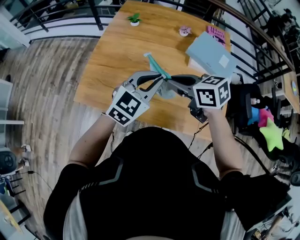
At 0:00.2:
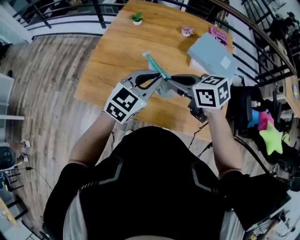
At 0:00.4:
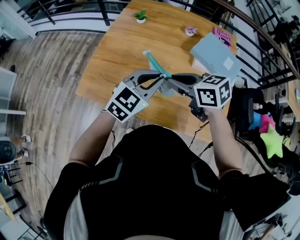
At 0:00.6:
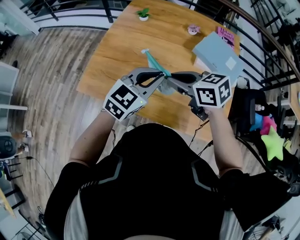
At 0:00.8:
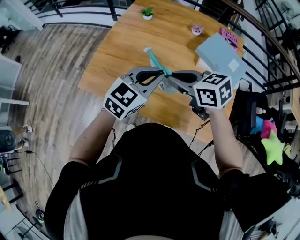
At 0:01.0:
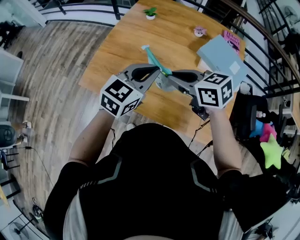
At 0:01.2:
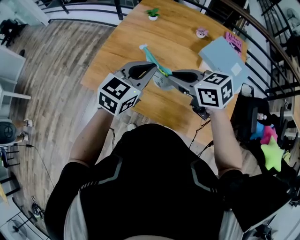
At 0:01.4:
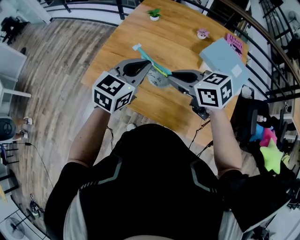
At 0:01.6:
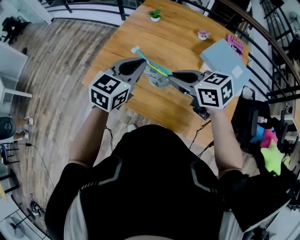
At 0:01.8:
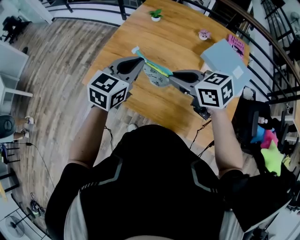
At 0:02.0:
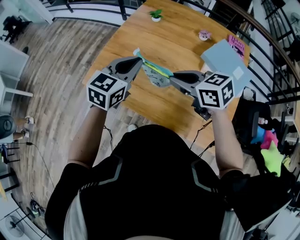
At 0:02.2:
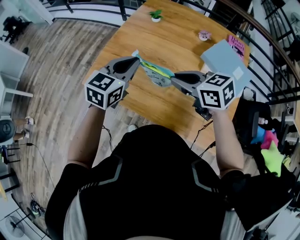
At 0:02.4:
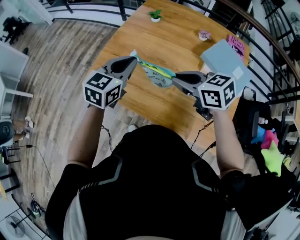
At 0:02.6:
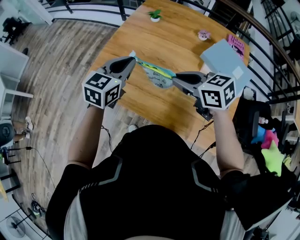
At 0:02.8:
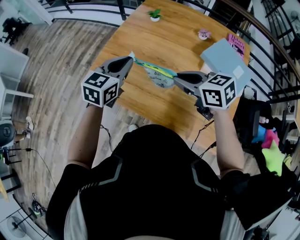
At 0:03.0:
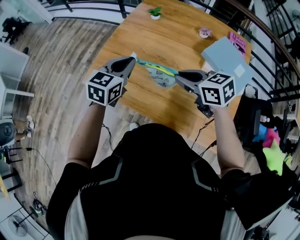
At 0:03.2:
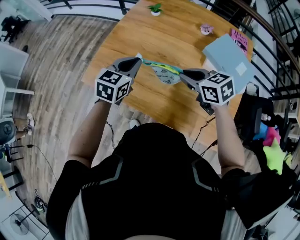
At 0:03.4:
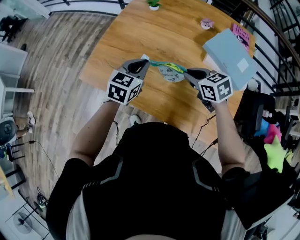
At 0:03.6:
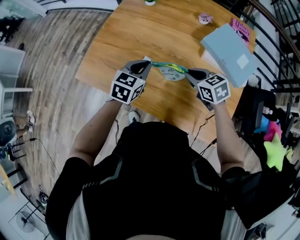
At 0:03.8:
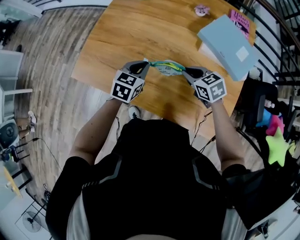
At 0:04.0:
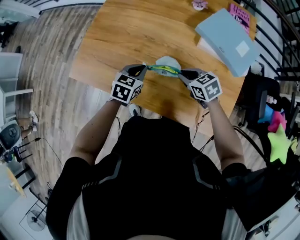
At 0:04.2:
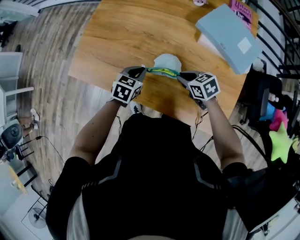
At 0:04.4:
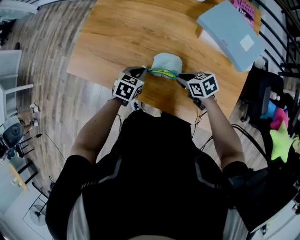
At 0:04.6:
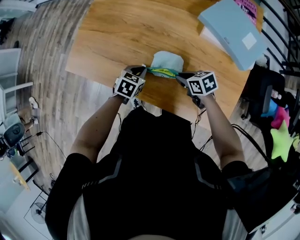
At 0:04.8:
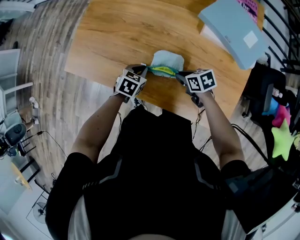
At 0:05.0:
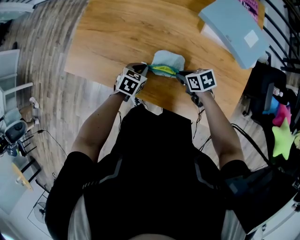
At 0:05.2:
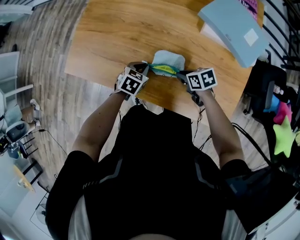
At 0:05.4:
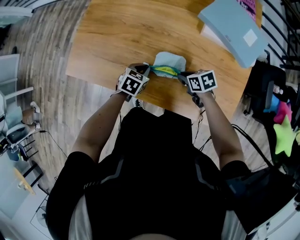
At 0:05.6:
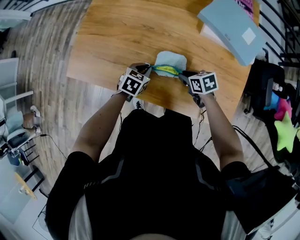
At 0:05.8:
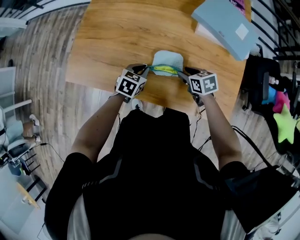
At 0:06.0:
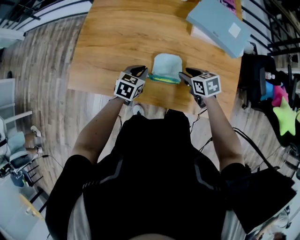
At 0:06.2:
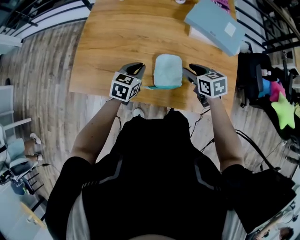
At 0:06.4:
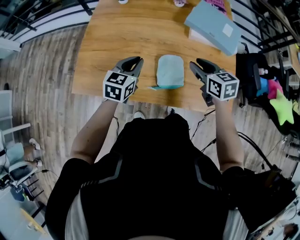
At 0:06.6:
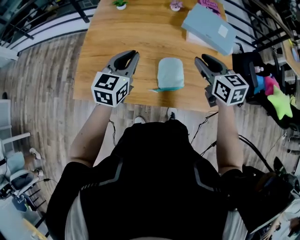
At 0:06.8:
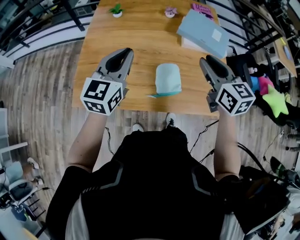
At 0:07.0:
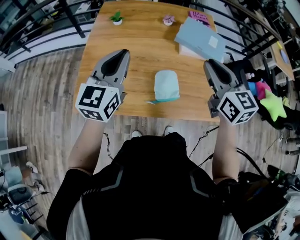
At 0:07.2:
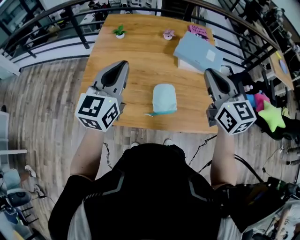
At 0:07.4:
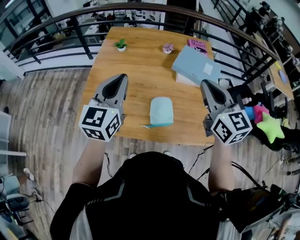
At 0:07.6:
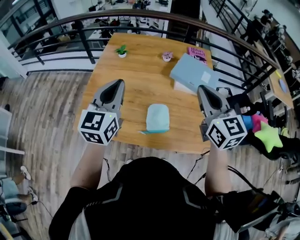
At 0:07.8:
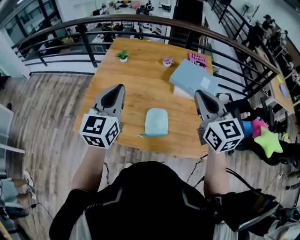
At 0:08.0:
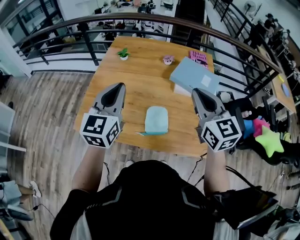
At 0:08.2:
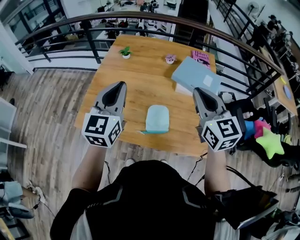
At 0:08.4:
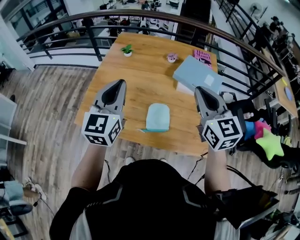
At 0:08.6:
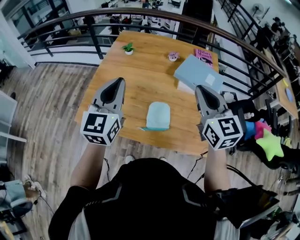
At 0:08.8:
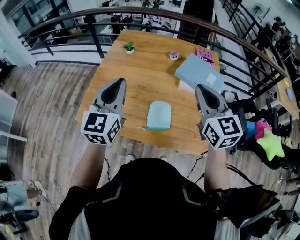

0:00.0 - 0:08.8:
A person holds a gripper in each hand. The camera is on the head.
0:00.0 - 0:01.4: The left gripper shifts about 5 cm to the left, and swivels about 20 degrees.
0:01.4 - 0:03.0: The left gripper is displaced to the left by roughly 5 cm.
0:03.0 - 0:04.4: The grippers both shift downward by some 25 cm. The left gripper rotates some 30 degrees; the right gripper swivels some 20 degrees.
0:04.4 - 0:05.8: The right gripper opens.
0:05.8 - 0:07.4: The two grippers go roughly 40 cm upward. The right gripper angles its fingers upward, by approximately 40 degrees, and closes up; the left gripper points its fingers some 50 degrees further upward.
0:07.4 - 0:08.8: The grippers make only small movements.

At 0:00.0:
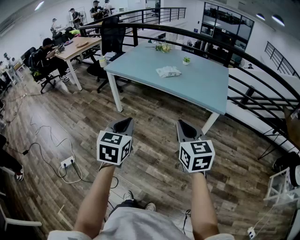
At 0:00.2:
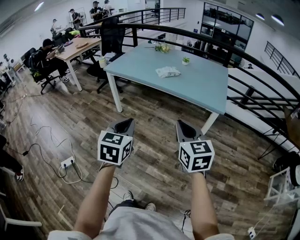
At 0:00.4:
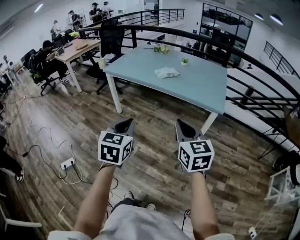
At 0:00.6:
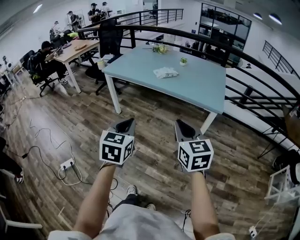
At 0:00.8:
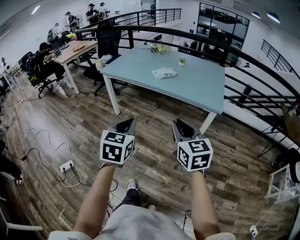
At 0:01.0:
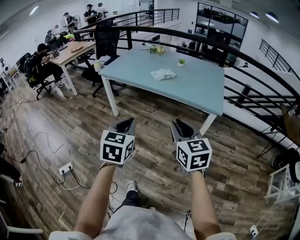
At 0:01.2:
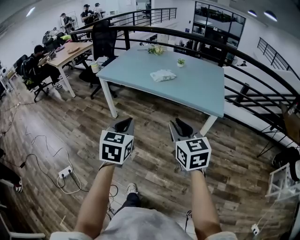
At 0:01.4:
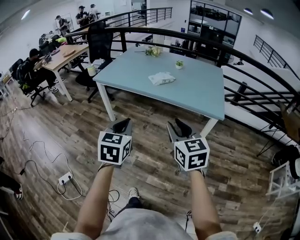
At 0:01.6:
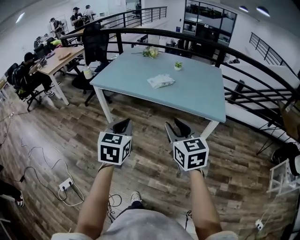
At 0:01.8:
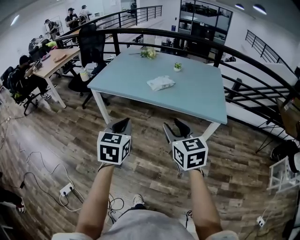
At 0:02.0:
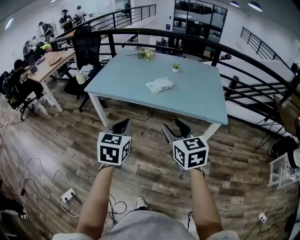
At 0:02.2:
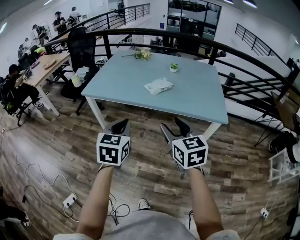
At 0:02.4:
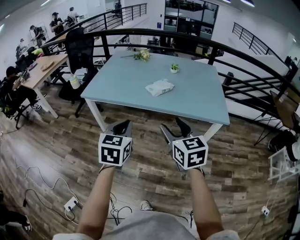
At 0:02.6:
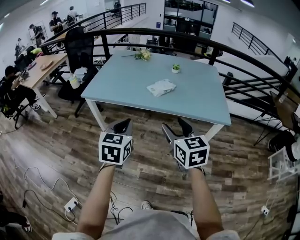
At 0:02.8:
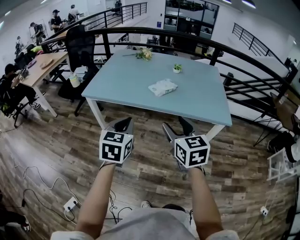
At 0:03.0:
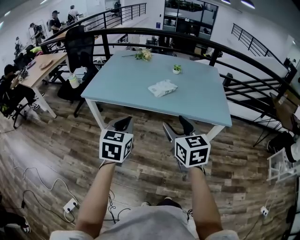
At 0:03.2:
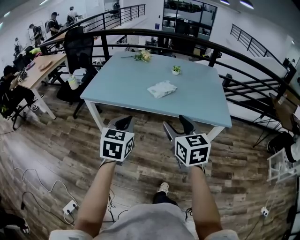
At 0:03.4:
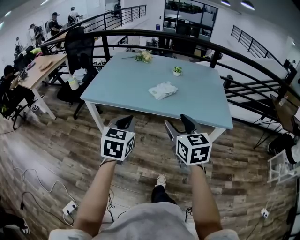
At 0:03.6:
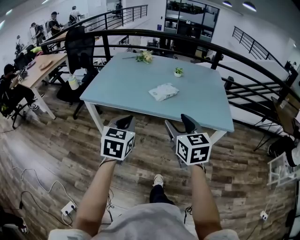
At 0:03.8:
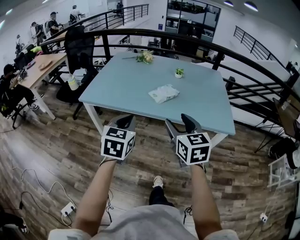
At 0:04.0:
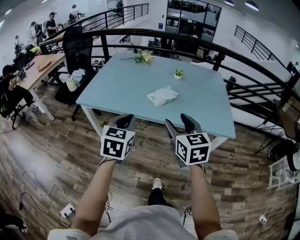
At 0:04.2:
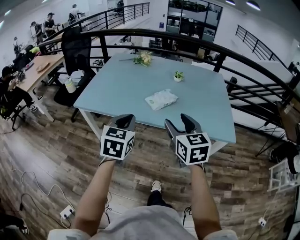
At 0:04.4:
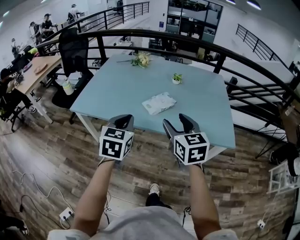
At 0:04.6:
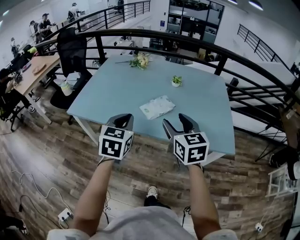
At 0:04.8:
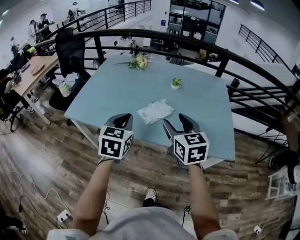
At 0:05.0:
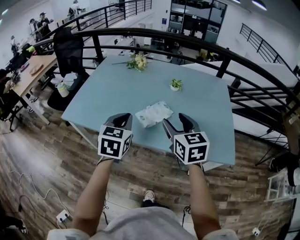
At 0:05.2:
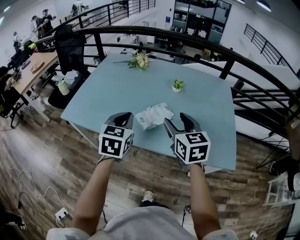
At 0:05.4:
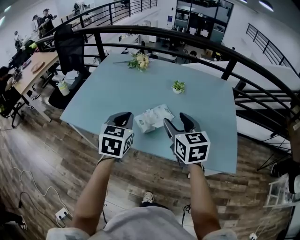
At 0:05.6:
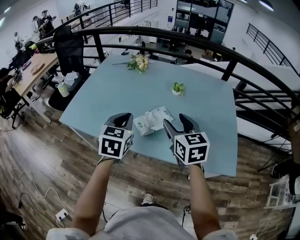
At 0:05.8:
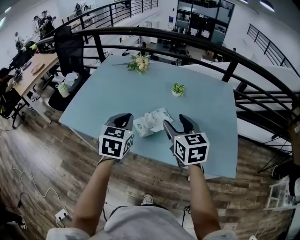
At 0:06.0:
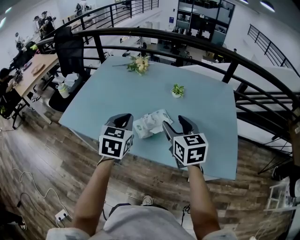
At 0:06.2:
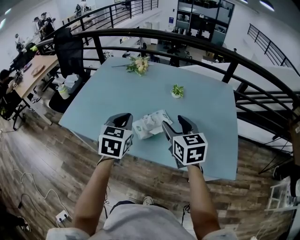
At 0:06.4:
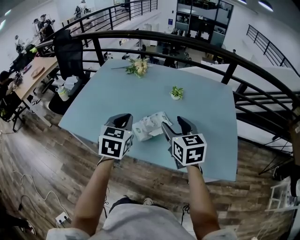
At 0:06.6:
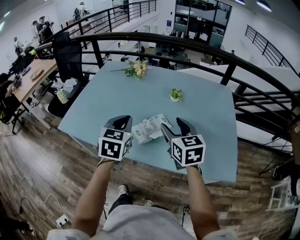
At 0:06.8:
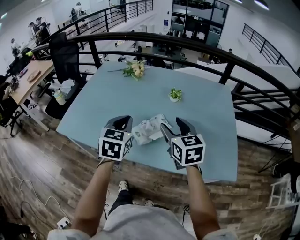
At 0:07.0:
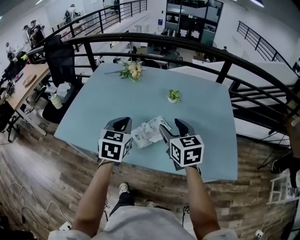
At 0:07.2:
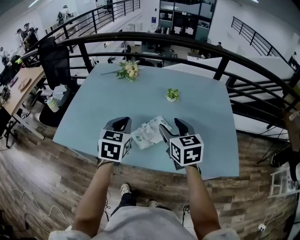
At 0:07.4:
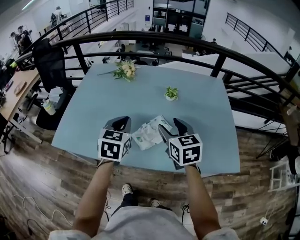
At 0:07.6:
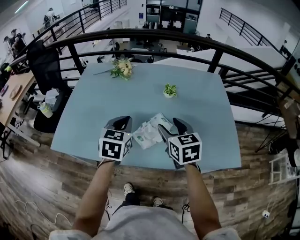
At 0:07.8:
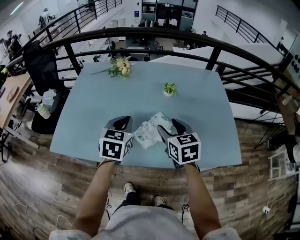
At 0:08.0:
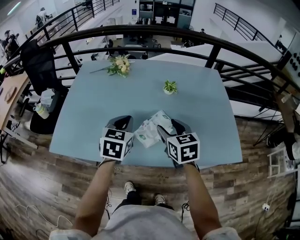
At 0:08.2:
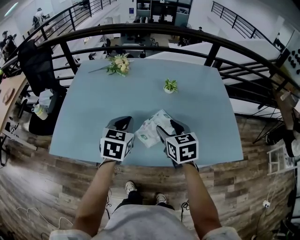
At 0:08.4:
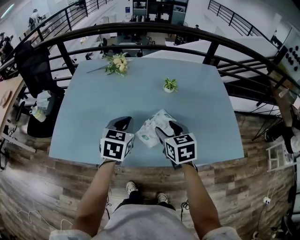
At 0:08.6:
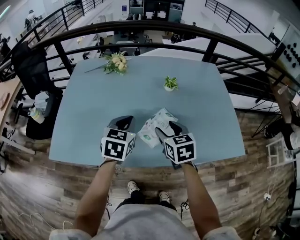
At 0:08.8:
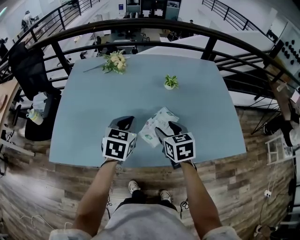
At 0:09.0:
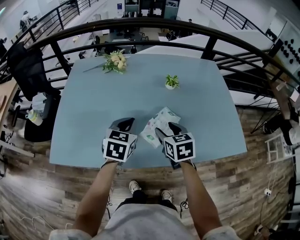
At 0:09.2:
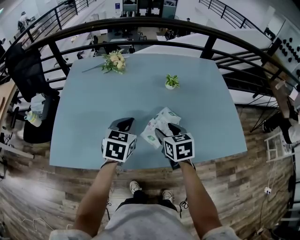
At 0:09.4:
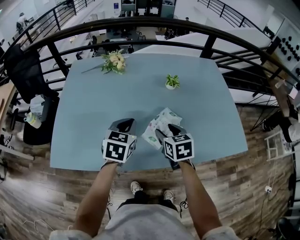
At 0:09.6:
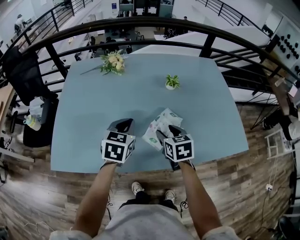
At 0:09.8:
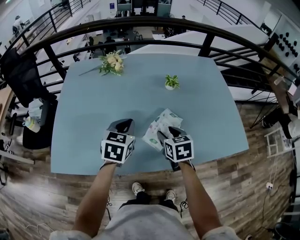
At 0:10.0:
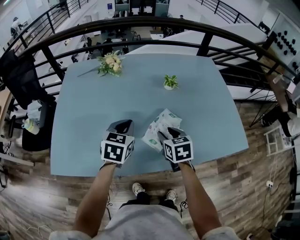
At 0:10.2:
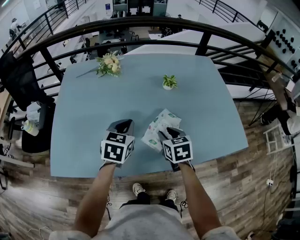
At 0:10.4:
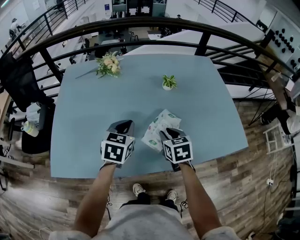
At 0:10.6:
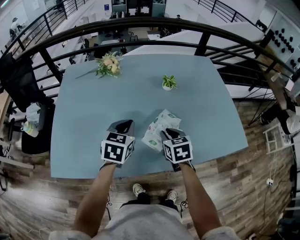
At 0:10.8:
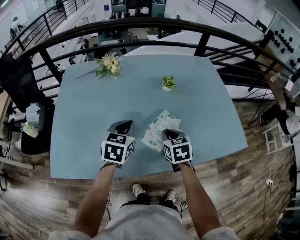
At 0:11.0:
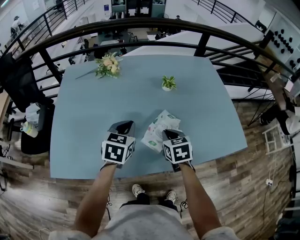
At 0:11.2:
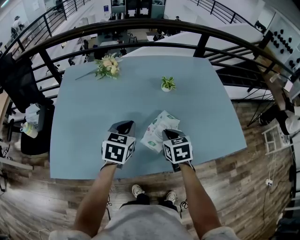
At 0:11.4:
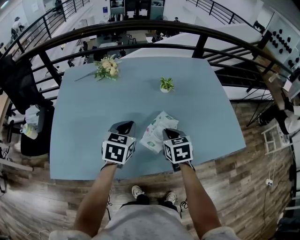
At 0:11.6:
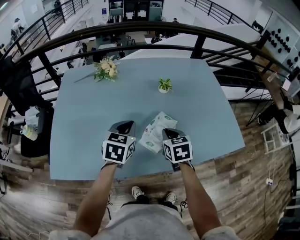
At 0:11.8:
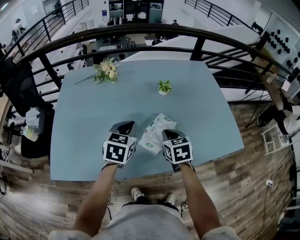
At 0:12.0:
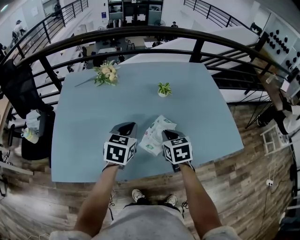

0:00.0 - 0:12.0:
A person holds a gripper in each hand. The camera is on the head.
0:00.0 - 0:01.6: The left gripper travels forward by some 15 cm. Meanwhile the right gripper shifts some 15 cm forward and to the left, and opens its fingers.
0:01.6 - 0:03.0: The two grippers go some 15 cm forward and to the left. The right gripper opens.
0:03.0 - 0:04.4: The two grippers go roughly 20 cm forward.
0:04.4 - 0:06.0: The two grippers go roughly 20 cm forward.
0:06.0 - 0:07.6: The right gripper moves approximately 5 cm; the left gripper heads forward, covering some 5 cm.
0:07.6 - 0:09.0: The left gripper shifts some 5 cm downward. Meanwhile the right gripper is displaced downward and to the left by approximately 10 cm.
0:09.0 - 0:10.4: The right gripper closes.
0:10.4 - 0:12.0: The right gripper closes up.

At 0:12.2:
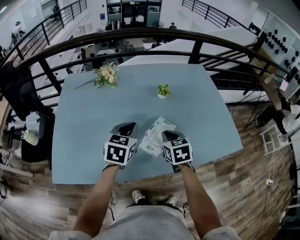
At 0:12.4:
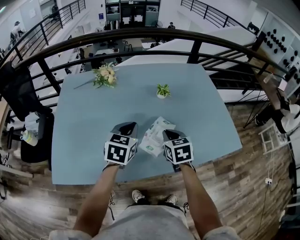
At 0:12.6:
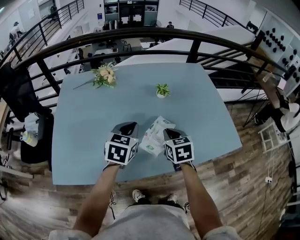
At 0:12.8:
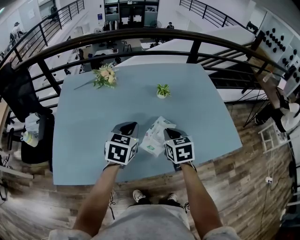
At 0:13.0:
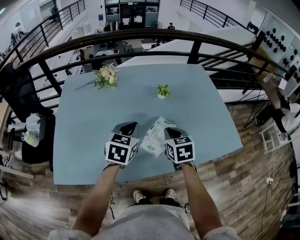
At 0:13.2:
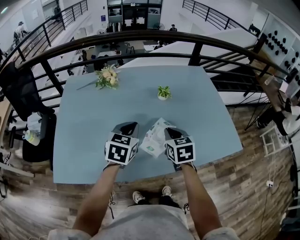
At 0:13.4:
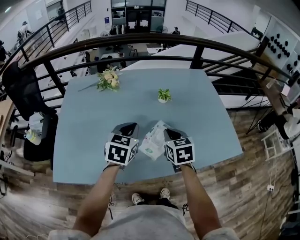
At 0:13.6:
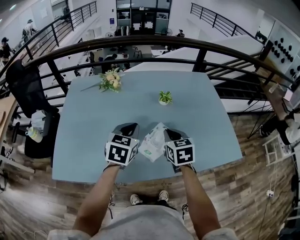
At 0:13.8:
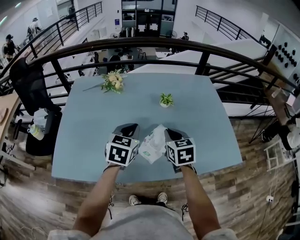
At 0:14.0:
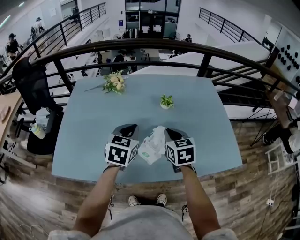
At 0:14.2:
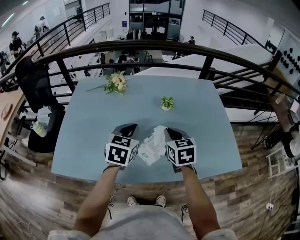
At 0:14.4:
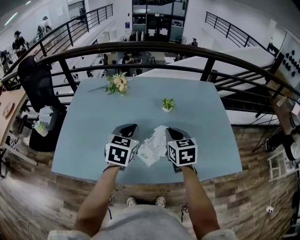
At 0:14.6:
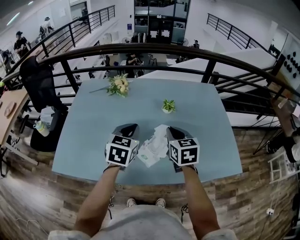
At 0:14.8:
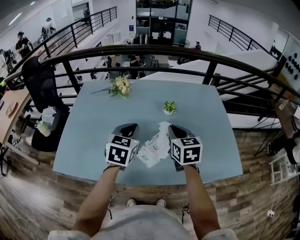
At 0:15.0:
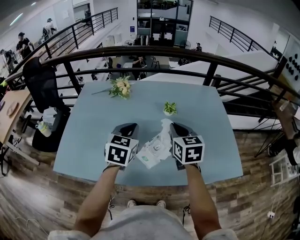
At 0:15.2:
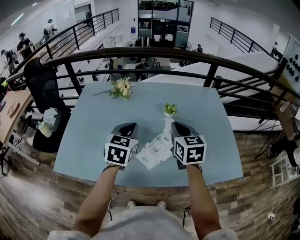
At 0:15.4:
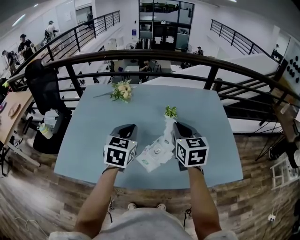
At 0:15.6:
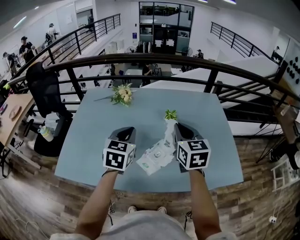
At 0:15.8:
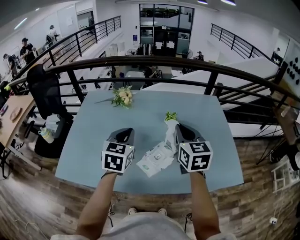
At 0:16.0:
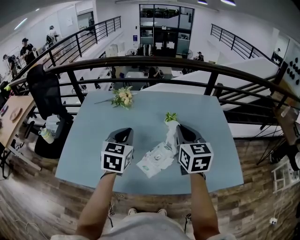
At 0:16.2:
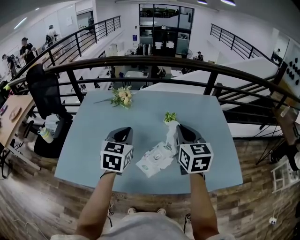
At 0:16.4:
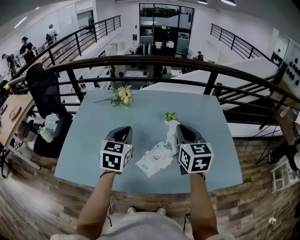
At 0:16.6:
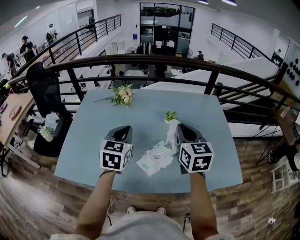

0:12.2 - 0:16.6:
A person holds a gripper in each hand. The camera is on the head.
0:12.2 - 0:13.6: The grippers move only a little.
0:13.6 - 0:15.2: The right gripper goes about 10 cm upward.
0:15.2 - 0:16.6: The right gripper shifts by approximately 5 cm.
